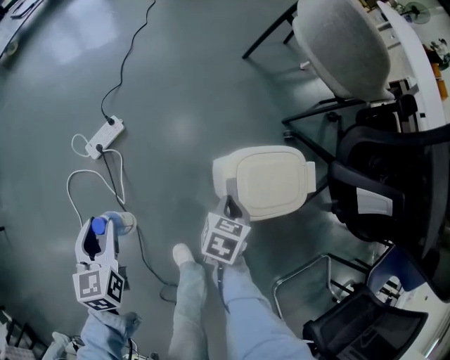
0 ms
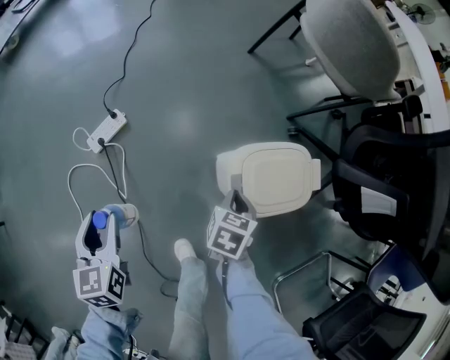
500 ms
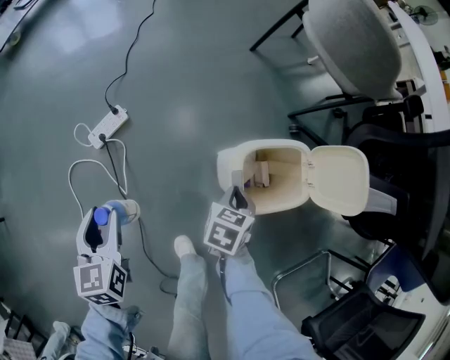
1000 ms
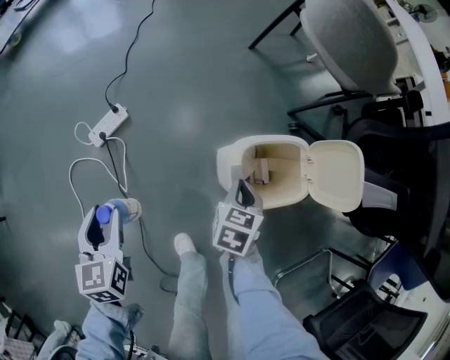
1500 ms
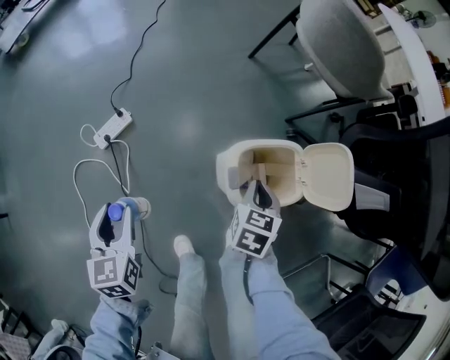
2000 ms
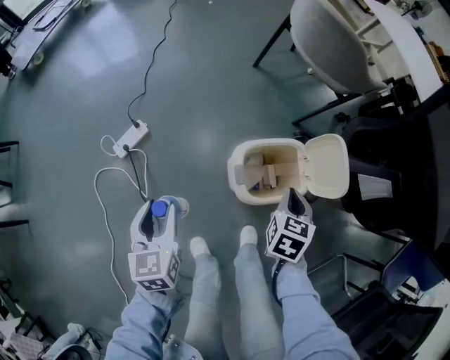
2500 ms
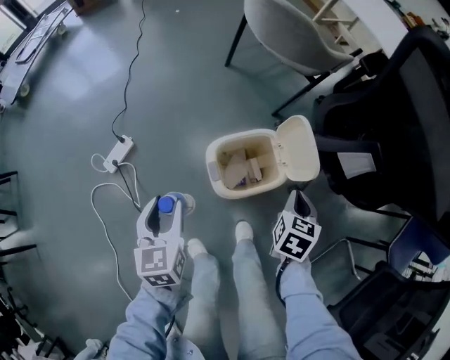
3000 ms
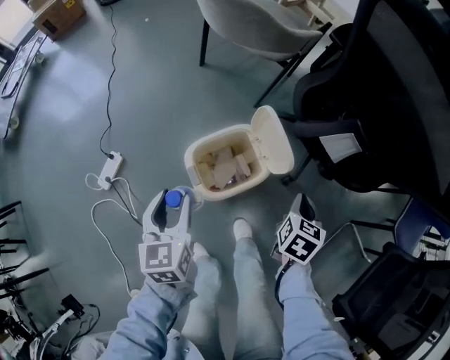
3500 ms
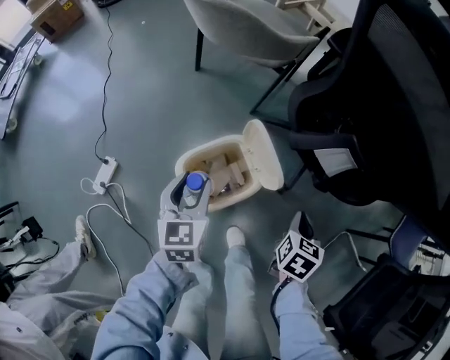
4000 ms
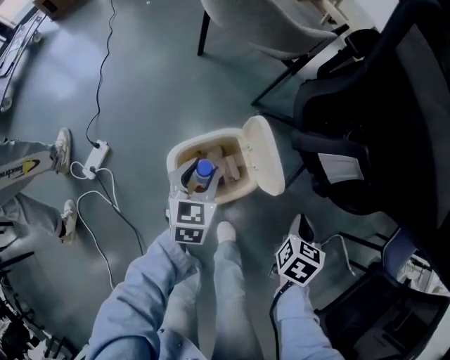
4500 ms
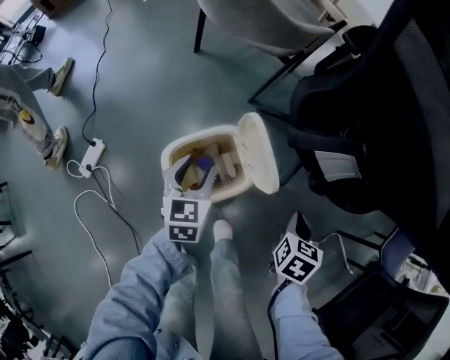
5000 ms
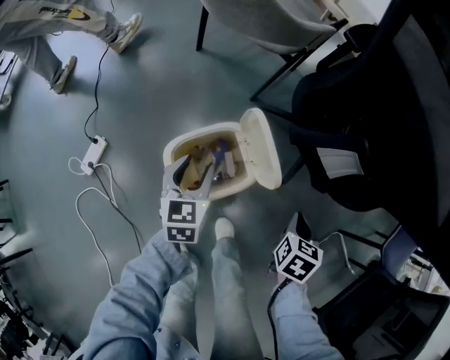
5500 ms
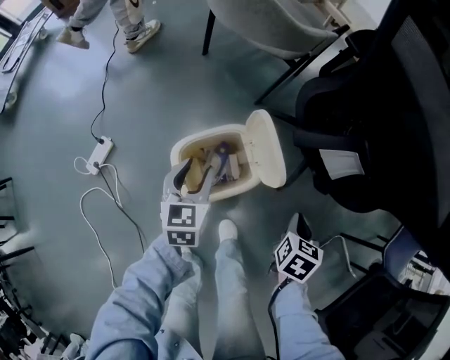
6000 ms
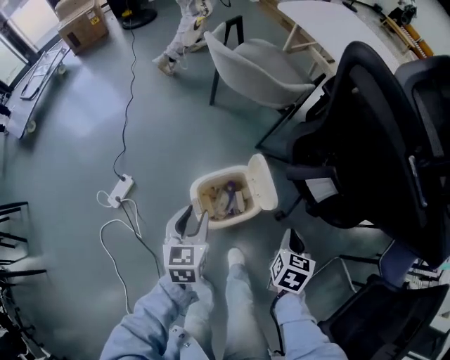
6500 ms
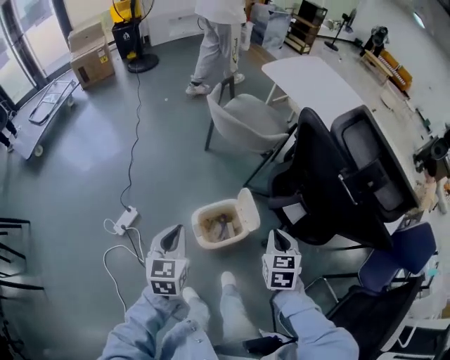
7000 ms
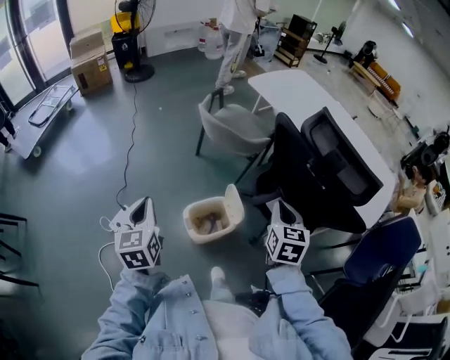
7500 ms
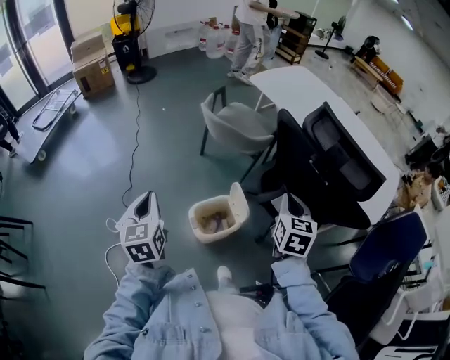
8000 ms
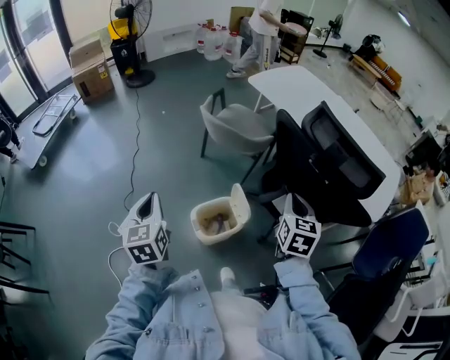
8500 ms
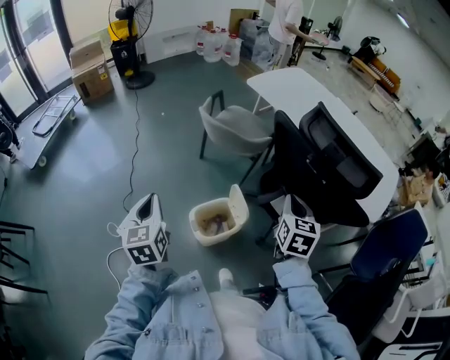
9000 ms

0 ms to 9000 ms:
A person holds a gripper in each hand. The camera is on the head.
0 ms to 2000 ms: The right gripper moves upward and to the right, approximately 10 cm.
2000 ms to 4500 ms: The left gripper travels upward and back again, approximately 10 cm each way, and rotates some 40 degrees. Meanwhile the right gripper shifts by some 35 cm, and swivels approximately 30 degrees.
4500 ms to 7000 ms: The left gripper travels upward and backward by approximately 35 cm, and closes up. Meanwhile the right gripper moves upward, approximately 30 cm, and rotates roughly 30 degrees.
7000 ms to 9000 ms: The right gripper is displaced upward and to the right by about 15 cm, and swivels about 20 degrees, while the left gripper heads upward, covering about 15 cm.

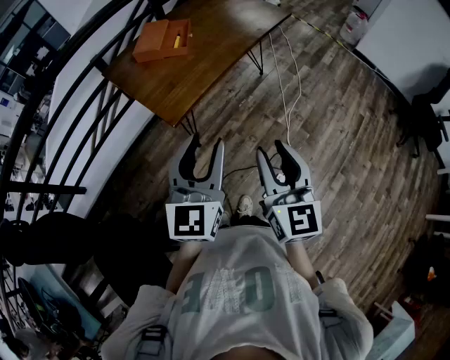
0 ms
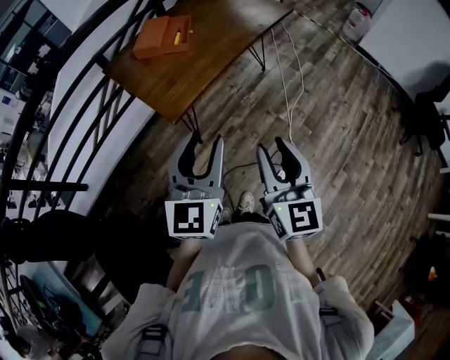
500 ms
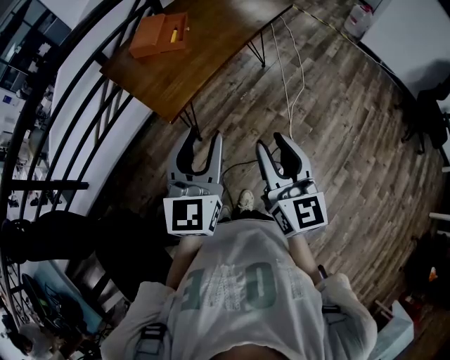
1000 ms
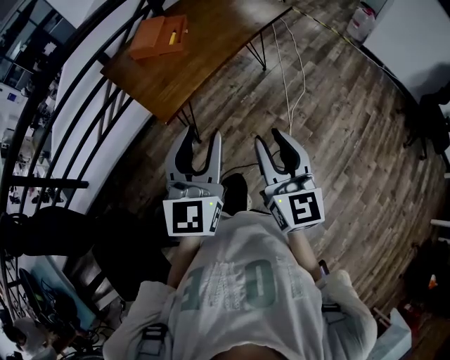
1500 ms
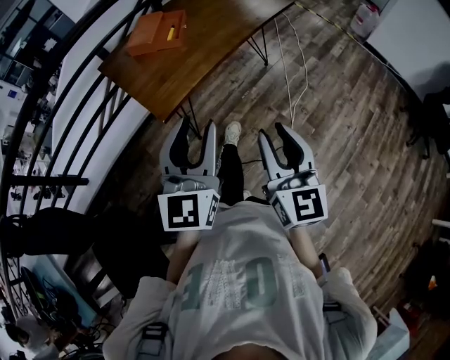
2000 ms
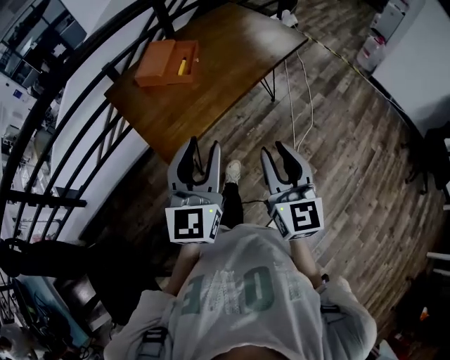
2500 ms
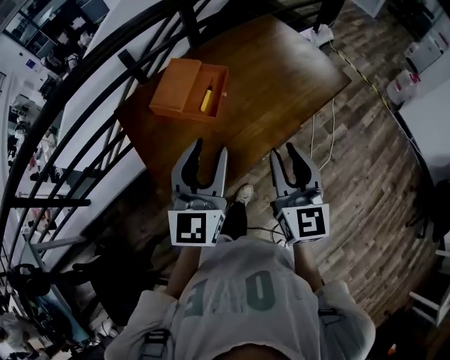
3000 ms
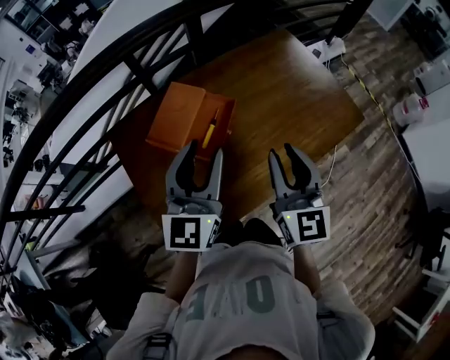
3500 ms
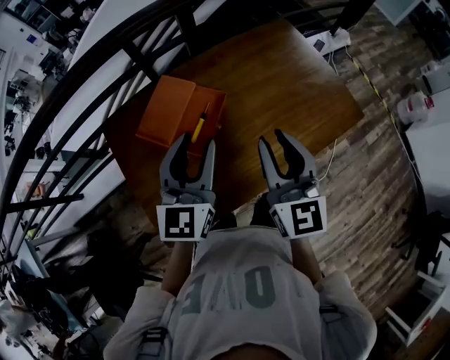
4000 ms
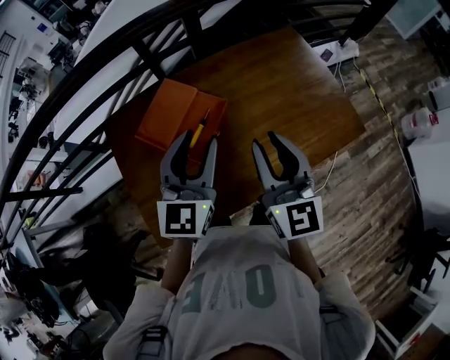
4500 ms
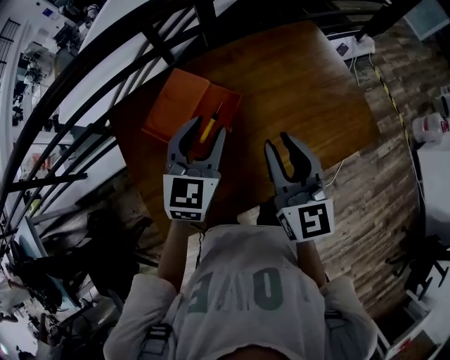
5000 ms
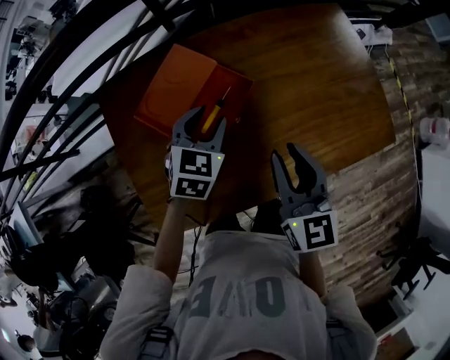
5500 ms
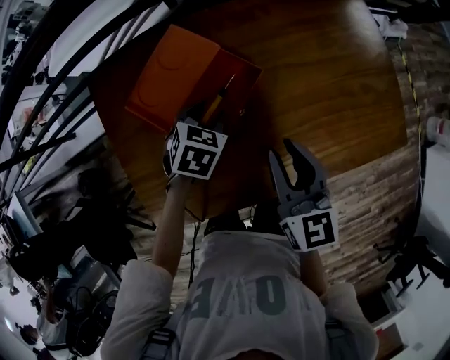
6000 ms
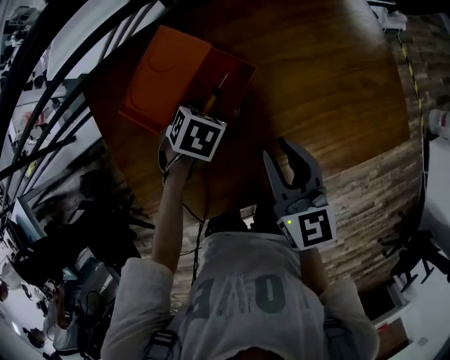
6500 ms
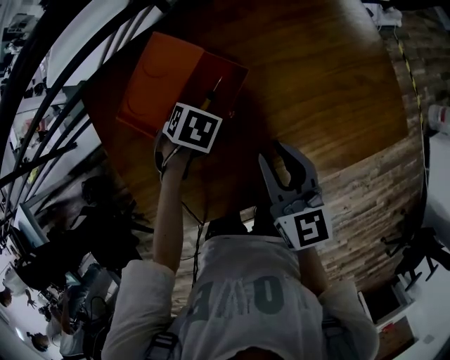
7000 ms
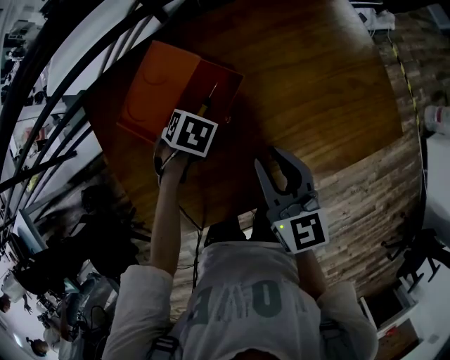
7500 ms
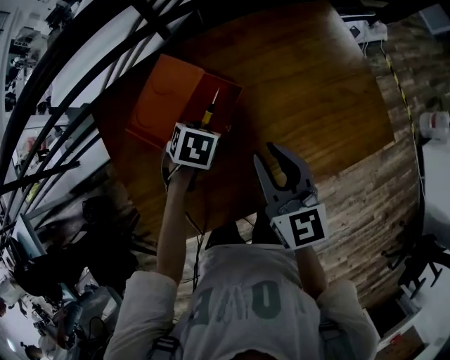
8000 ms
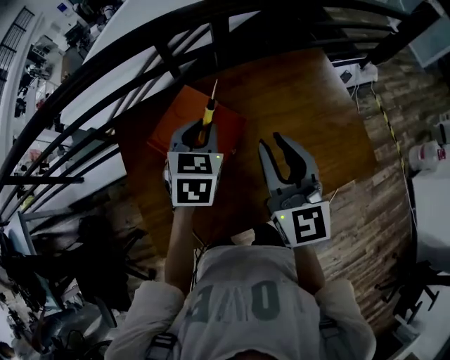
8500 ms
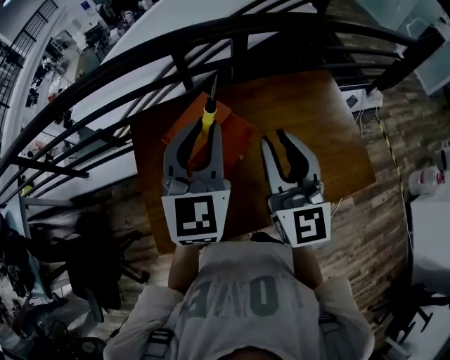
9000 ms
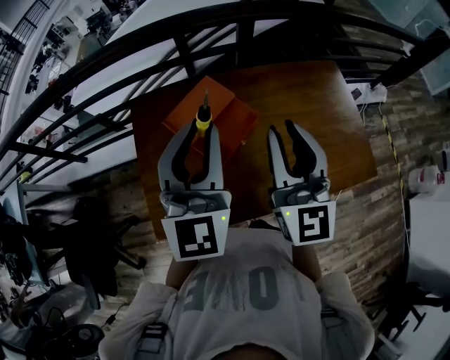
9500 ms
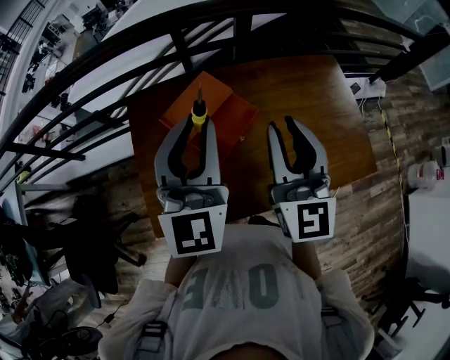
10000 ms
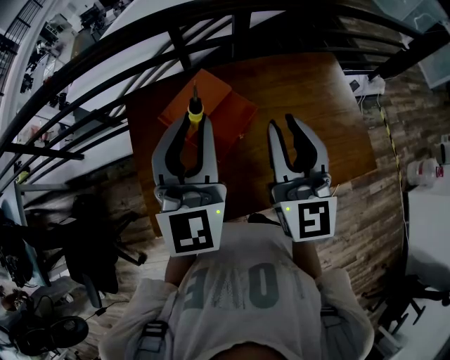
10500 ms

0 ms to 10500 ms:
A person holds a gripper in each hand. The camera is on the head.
0 ms to 2000 ms: The right gripper moves to the right, about 5 cm. The left gripper moves some 5 cm.
2000 ms to 4000 ms: The pair of grippers is taken forward, roughly 50 cm.
4000 ms to 6500 ms: The left gripper moves downward, about 30 cm, and angles its fingers downward, by about 70 degrees. The right gripper moves downward, roughly 15 cm, and turns by approximately 30 degrees.
6500 ms to 8500 ms: The grippers both shift upward by approximately 20 cm. The left gripper tips its fingers upward by some 40 degrees, and closes its fingers. The right gripper changes its angle by some 20 degrees.
8500 ms to 10500 ms: The right gripper travels upward by about 5 cm. Meanwhile the left gripper heads upward, backward and to the left, covering some 20 cm, and points its fingers about 40 degrees further upward.

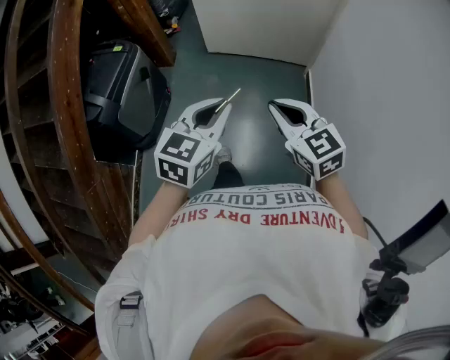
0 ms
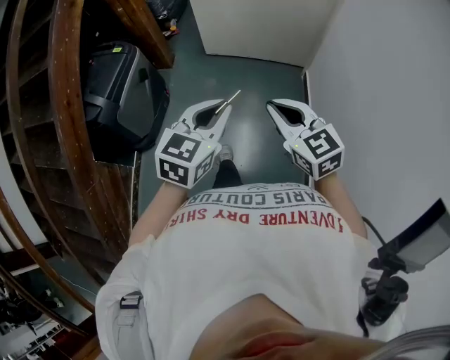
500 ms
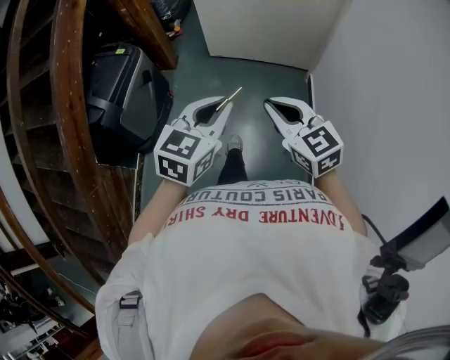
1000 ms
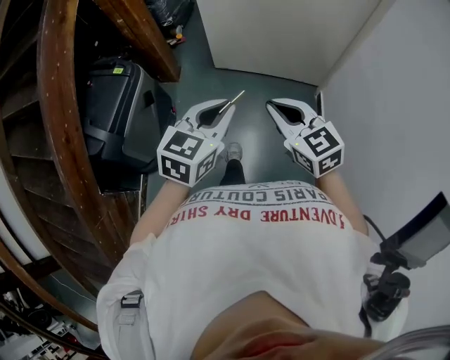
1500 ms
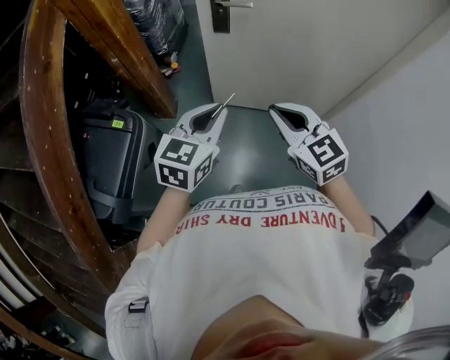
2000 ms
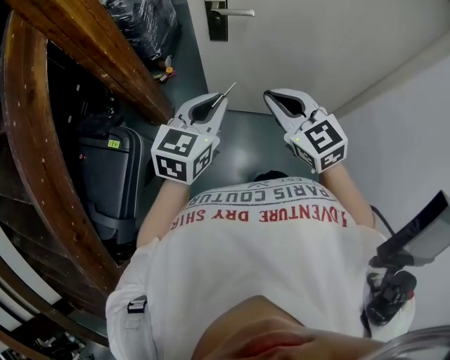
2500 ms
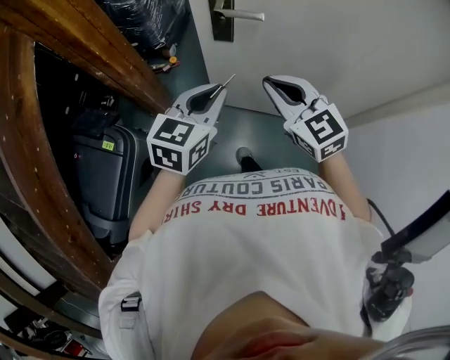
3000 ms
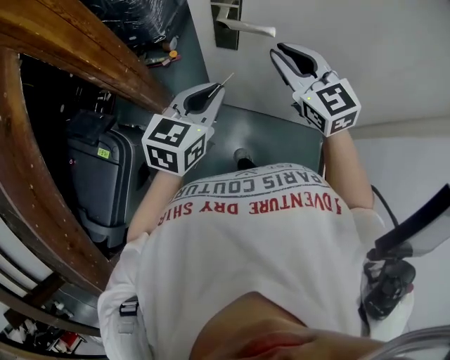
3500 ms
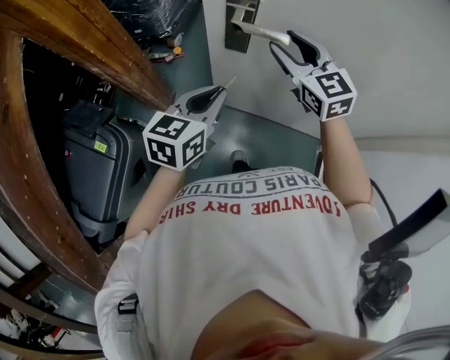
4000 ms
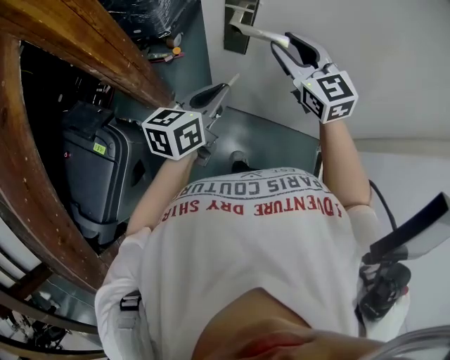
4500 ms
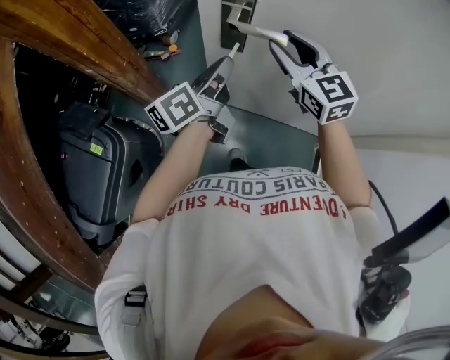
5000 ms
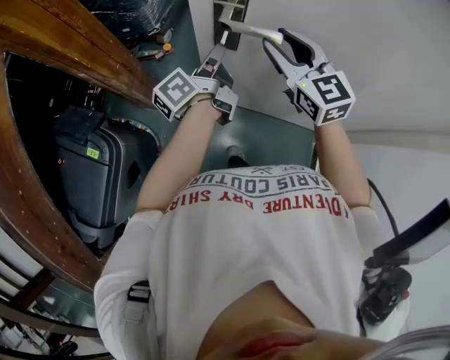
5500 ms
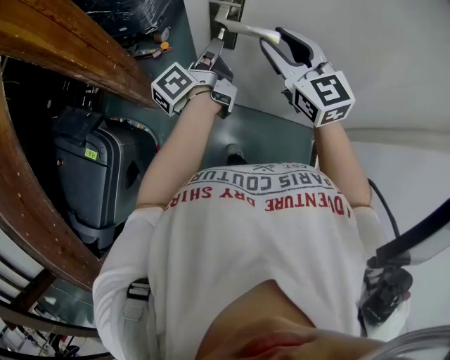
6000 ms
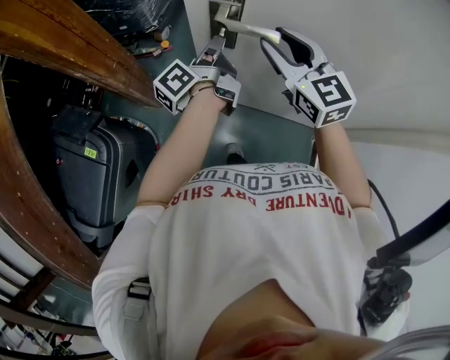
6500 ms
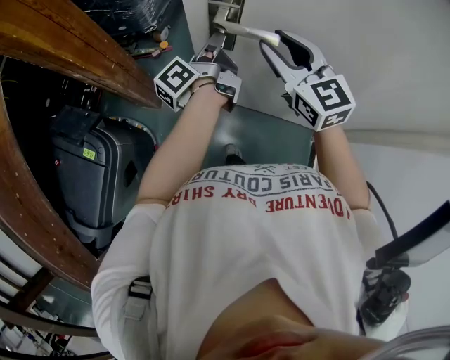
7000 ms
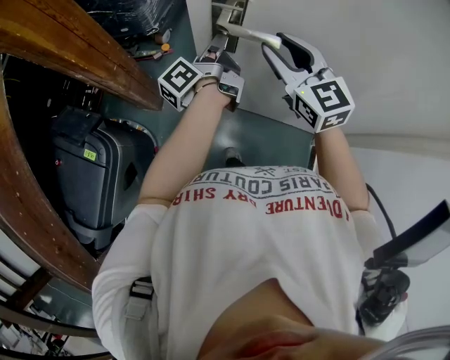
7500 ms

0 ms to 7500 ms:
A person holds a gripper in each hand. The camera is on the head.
0 ms to 2000 ms: Both grippers are carried forward, about 50 cm.
2000 ms to 4000 ms: The two grippers go about 35 cm forward. The right gripper opens up.
4000 ms to 5500 ms: The left gripper moves forward, some 10 cm, and rotates around the line of its fingers by roughly 60 degrees, counterclockwise from behind.
5500 ms to 7500 ms: The grippers stay close to where they were, moving slightly.
